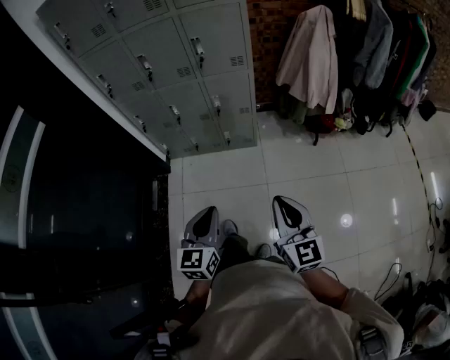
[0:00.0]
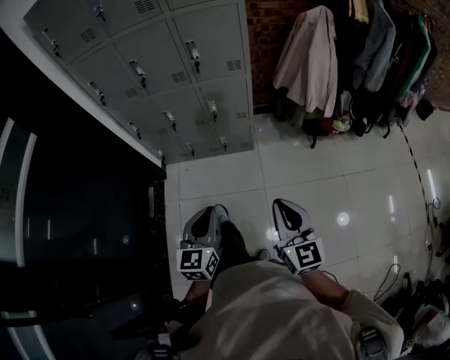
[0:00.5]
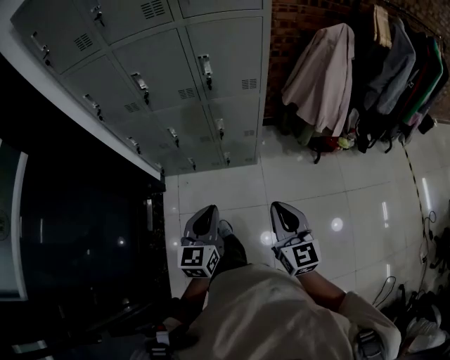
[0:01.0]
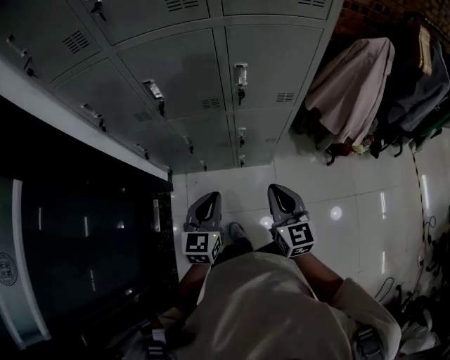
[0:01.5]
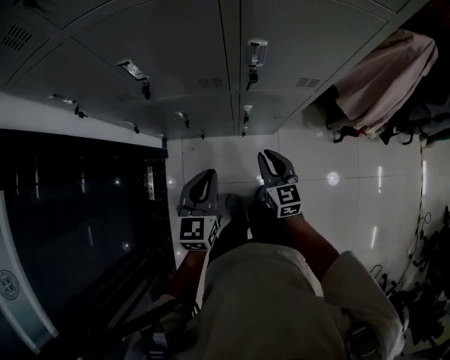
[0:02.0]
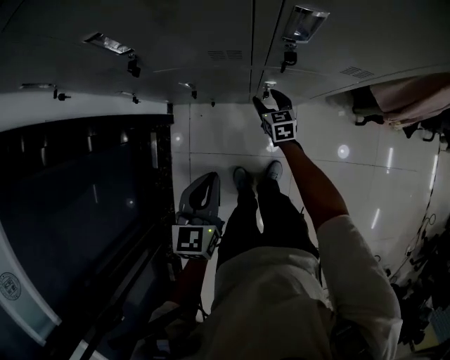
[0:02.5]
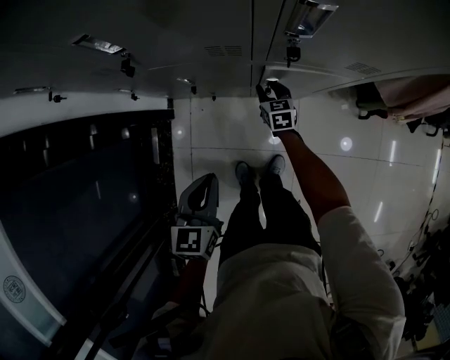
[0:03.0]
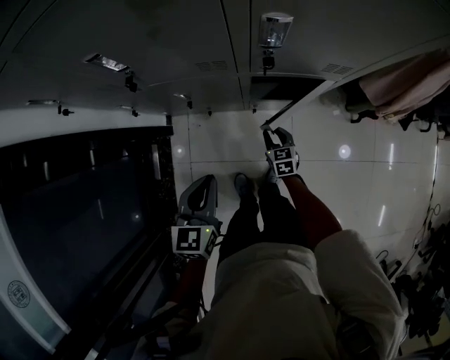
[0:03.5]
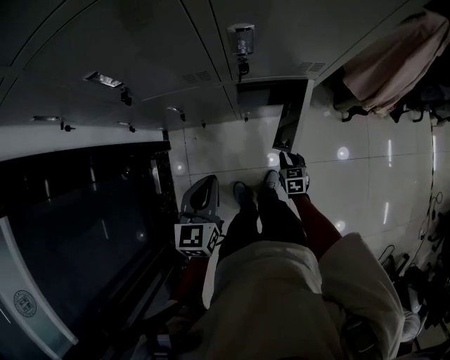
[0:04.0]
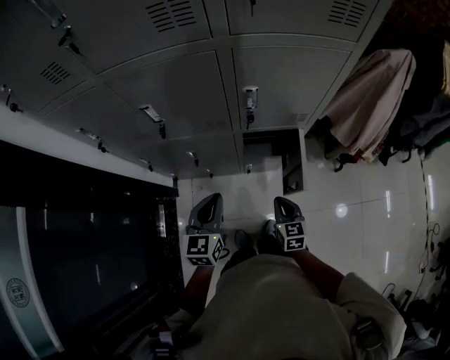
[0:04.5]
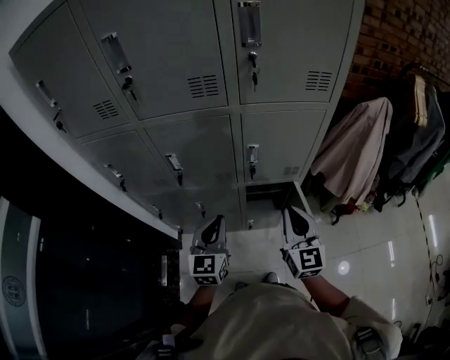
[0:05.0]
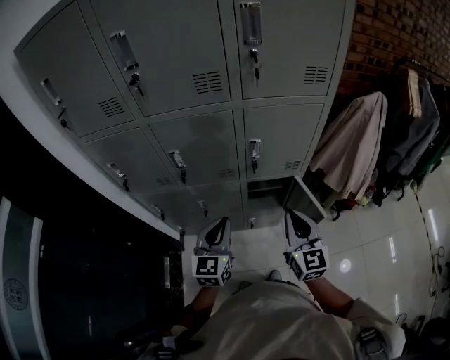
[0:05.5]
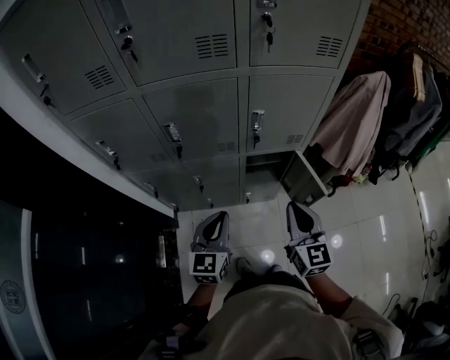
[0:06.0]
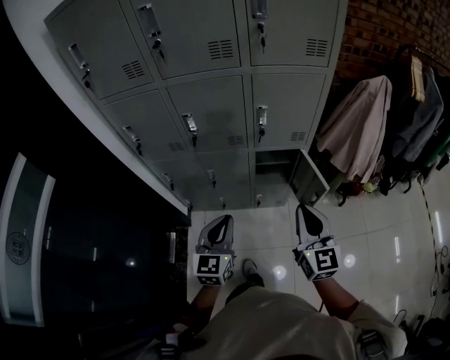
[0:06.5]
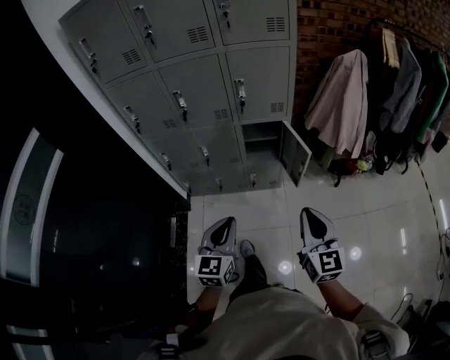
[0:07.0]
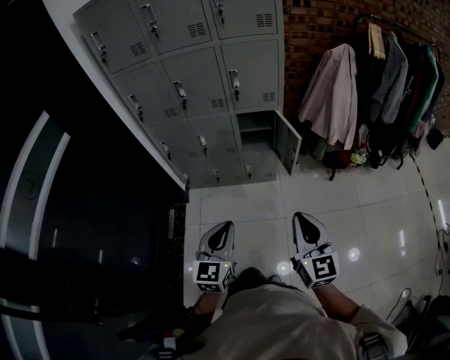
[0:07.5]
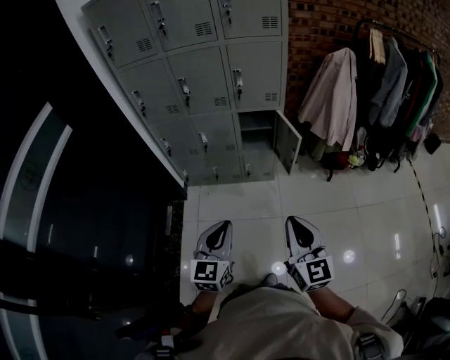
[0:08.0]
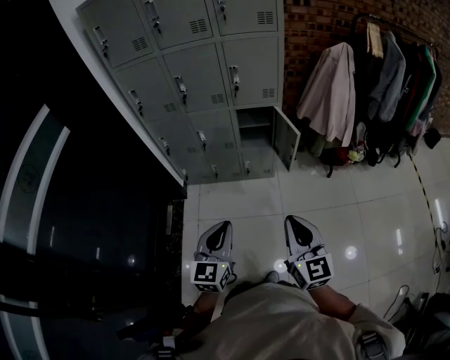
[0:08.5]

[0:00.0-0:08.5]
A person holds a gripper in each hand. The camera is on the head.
0:00.0 to 0:02.0: The pair of grippers is taken forward, roughly 60 cm. The right gripper goes some 30 cm downward, and changes its angle by some 30 degrees.
0:02.0 to 0:04.0: The left gripper is displaced downward by about 5 cm. The right gripper heads downward, covering about 30 cm, turns by some 30 degrees, and opens, then closes once more.
0:04.0 to 0:06.5: The left gripper goes up and down, about 30 cm each way, reversing 2 times, and swivels roughly 20 degrees, while the right gripper swings up and down, some 70 cm each way, with 2 reversals, and points its fingers some 50 degrees further upward.
0:06.5 to 0:08.5: The grippers both shift backward by about 35 cm.

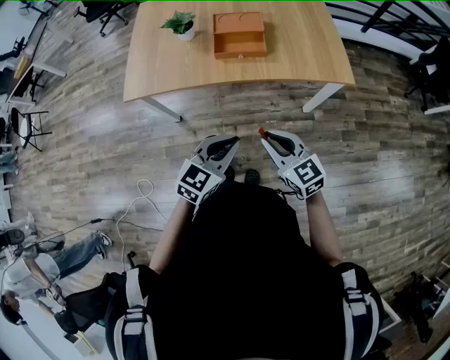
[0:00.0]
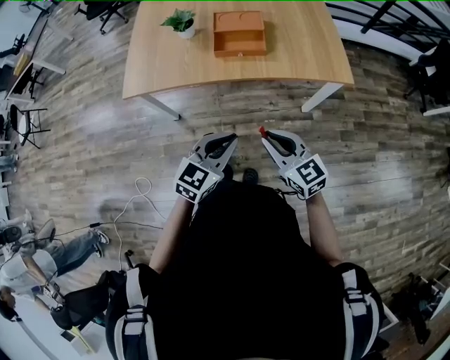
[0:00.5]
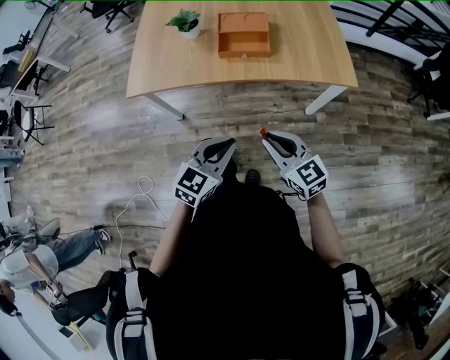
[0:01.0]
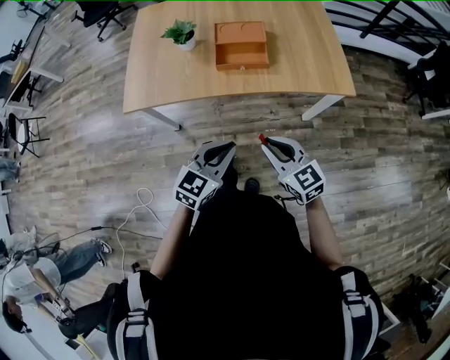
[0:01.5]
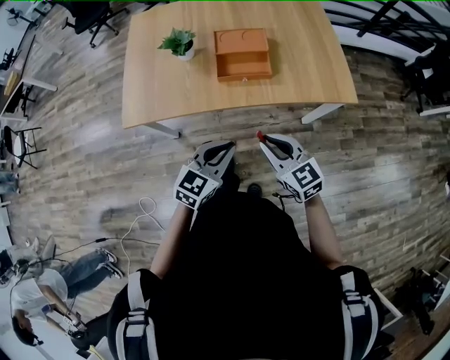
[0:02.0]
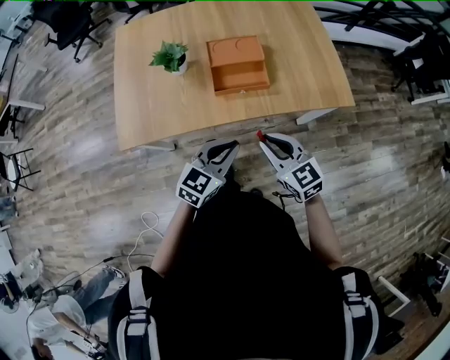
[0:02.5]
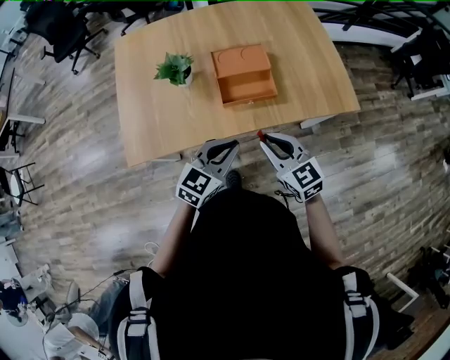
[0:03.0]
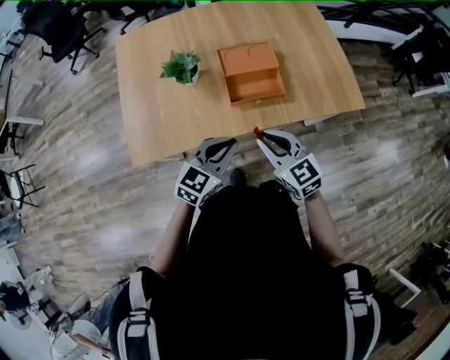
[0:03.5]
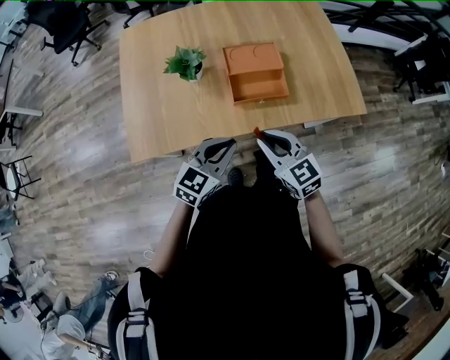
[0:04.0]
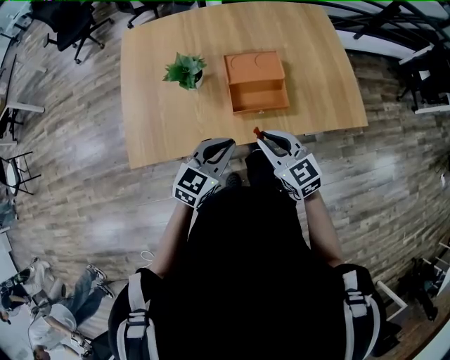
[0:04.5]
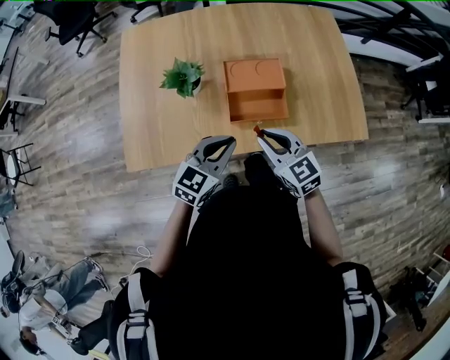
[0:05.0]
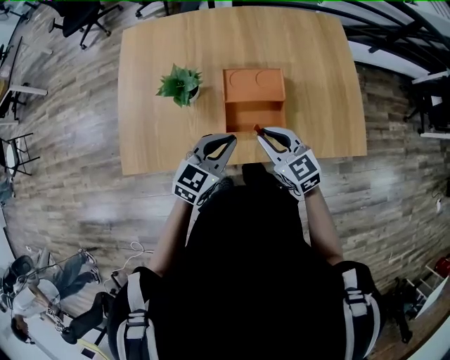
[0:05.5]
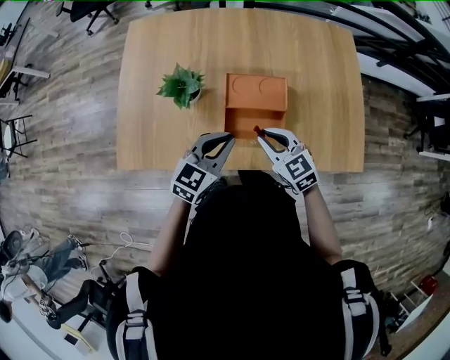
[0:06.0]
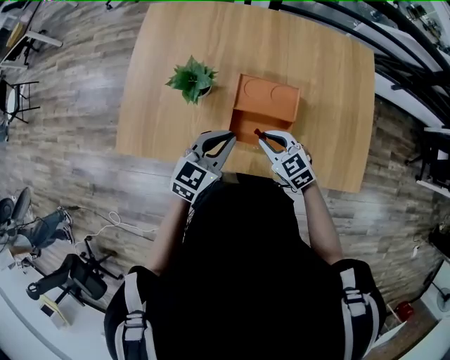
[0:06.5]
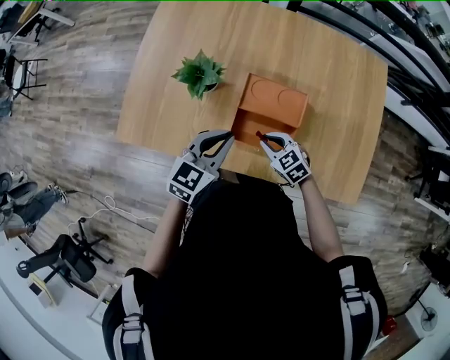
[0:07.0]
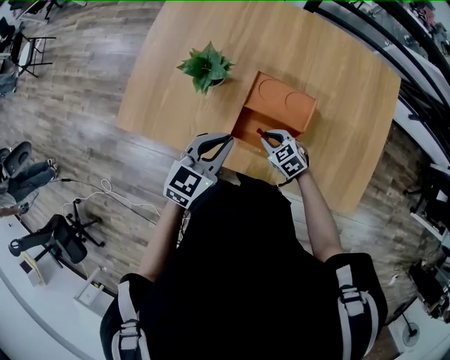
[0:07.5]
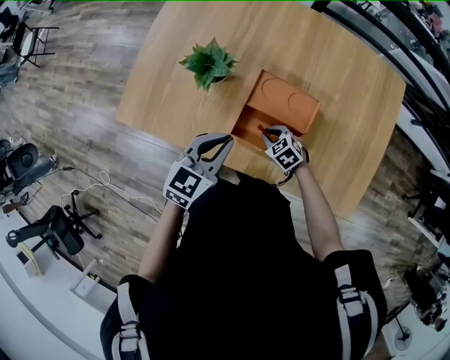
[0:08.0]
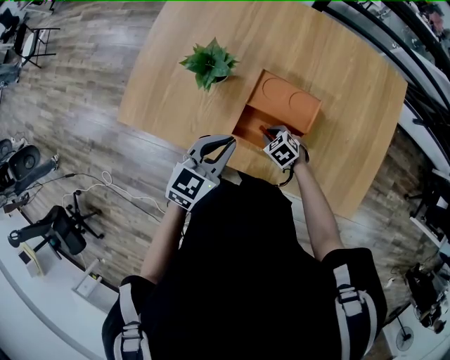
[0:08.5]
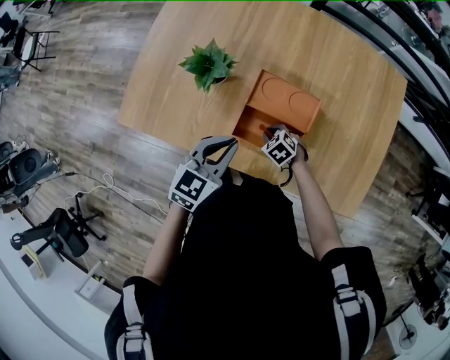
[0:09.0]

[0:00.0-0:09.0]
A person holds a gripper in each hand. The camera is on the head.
0:00.0 to 0:02.0: The right gripper travels forward by about 10 cm; the left gripper is displaced forward and to the left by approximately 15 cm.
0:02.0 to 0:04.5: The two grippers go some 20 cm forward and to the left.
0:04.5 to 0:07.0: The left gripper shifts by about 20 cm, and turns by some 30 degrees; the right gripper moves approximately 25 cm, and rotates roughly 40 degrees.
0:07.0 to 0:09.0: The right gripper goes approximately 10 cm downward, and swivels roughly 20 degrees.

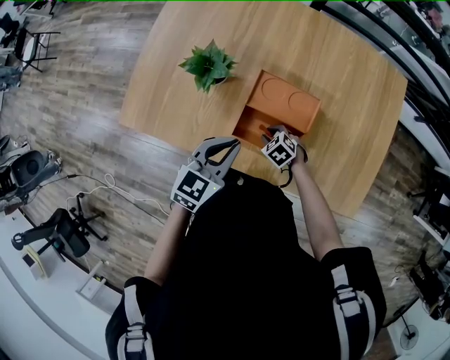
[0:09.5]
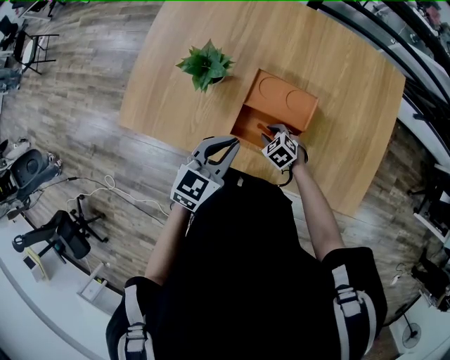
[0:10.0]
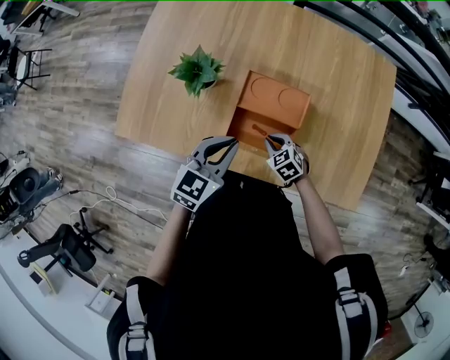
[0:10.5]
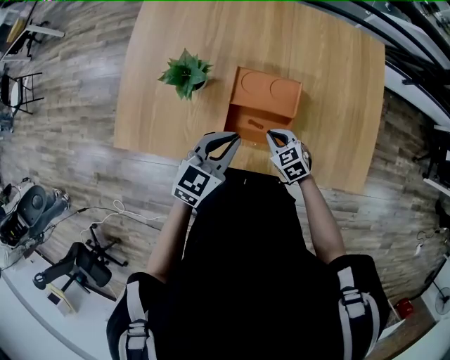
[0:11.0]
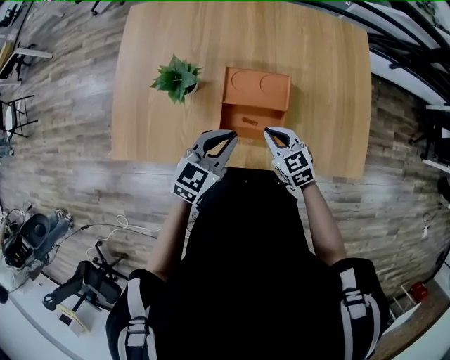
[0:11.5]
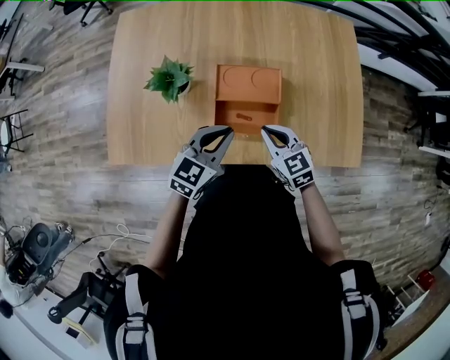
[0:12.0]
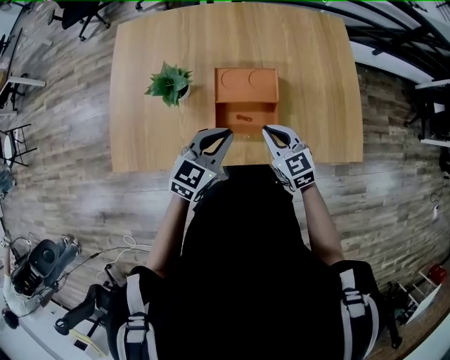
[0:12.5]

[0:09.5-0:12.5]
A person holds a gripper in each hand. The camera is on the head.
0:09.5 to 0:11.0: The right gripper shifts approximately 10 cm upward, swivels approximately 30 degrees, and closes.
0:11.0 to 0:12.5: The right gripper shifts some 10 cm upward, and rotates roughly 20 degrees.

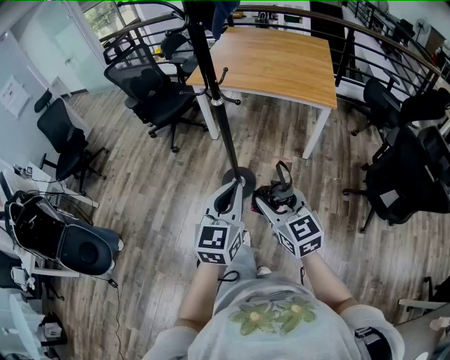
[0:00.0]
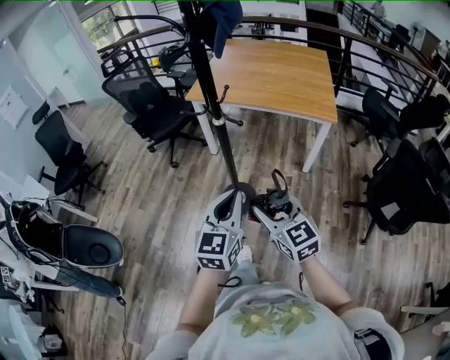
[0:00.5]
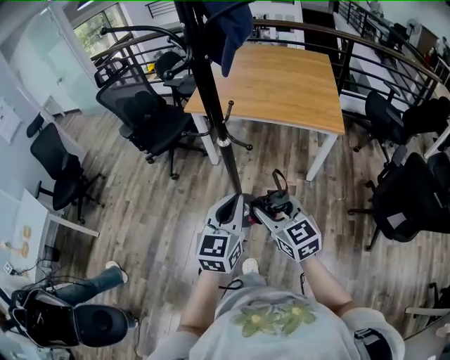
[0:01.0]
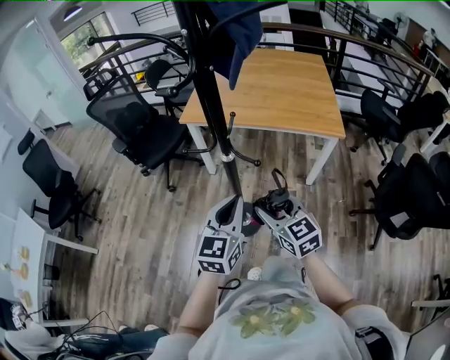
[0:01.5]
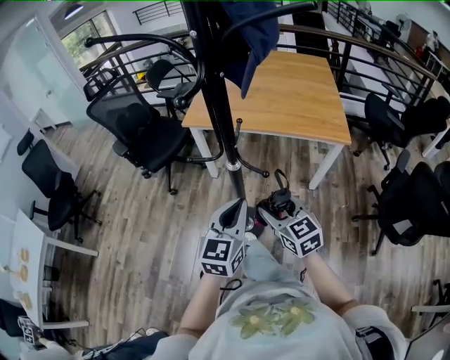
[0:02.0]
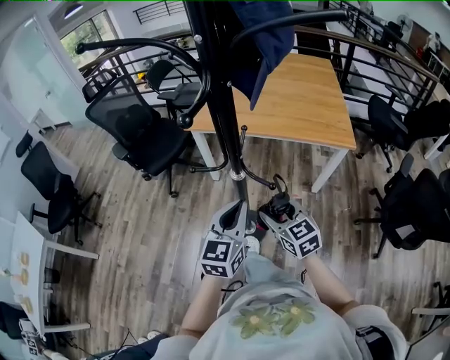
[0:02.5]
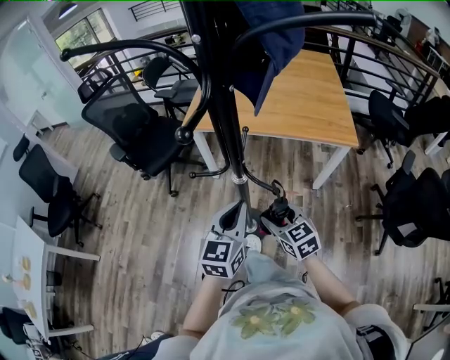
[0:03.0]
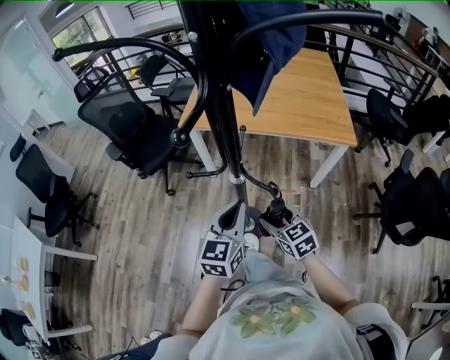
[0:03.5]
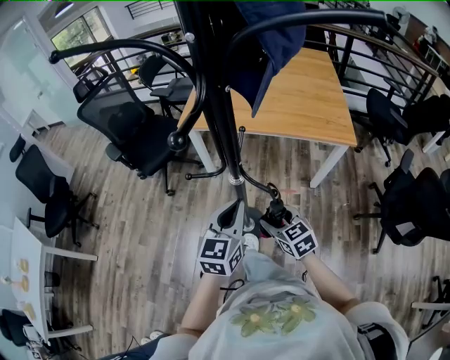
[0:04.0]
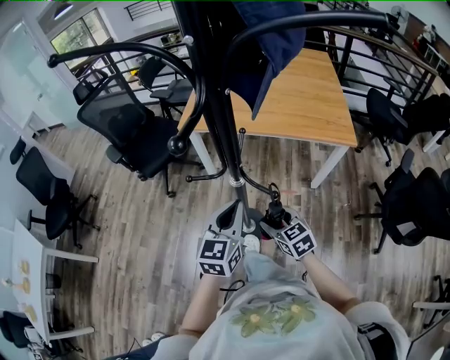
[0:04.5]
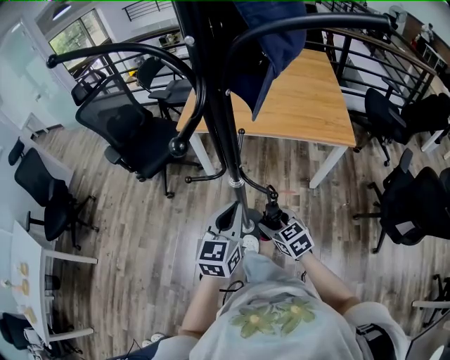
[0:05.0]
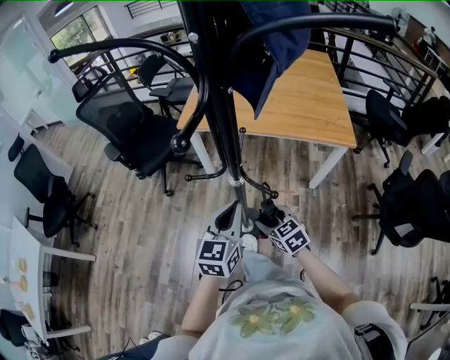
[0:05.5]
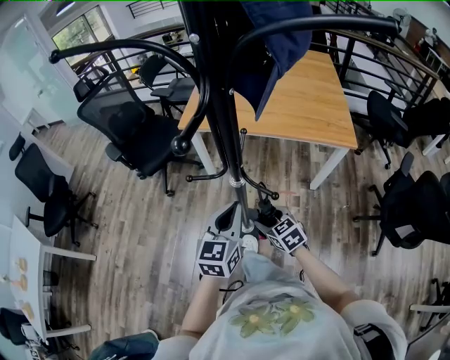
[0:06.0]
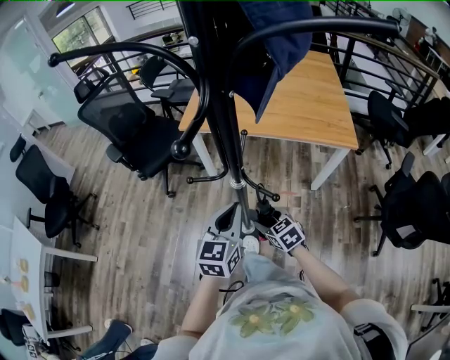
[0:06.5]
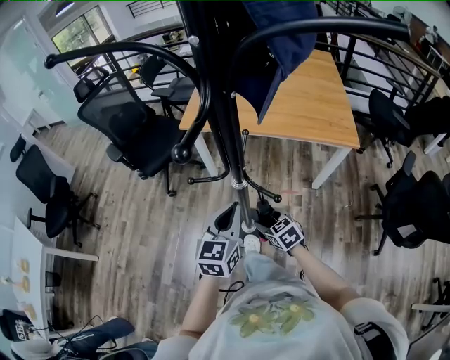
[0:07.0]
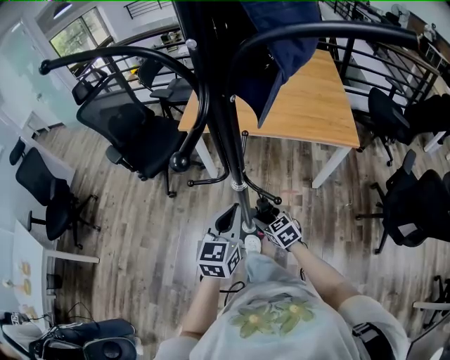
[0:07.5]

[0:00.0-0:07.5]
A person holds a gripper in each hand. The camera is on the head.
0:00.0 to 0:02.0: Both grippers move forward, about 30 cm.
0:02.0 to 0:04.0: The left gripper moves forward, roughly 10 cm, while the right gripper heads downward, covering about 10 cm.
0:04.0 to 0:05.5: The grippers move only a little.
0:05.5 to 0:07.5: The right gripper moves downward, roughly 5 cm.
